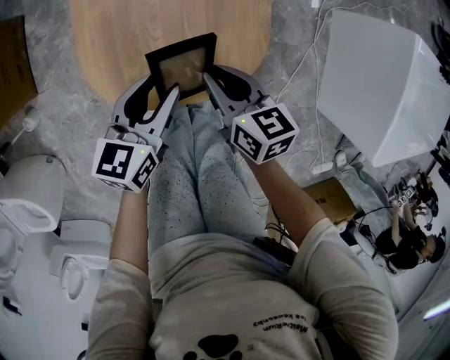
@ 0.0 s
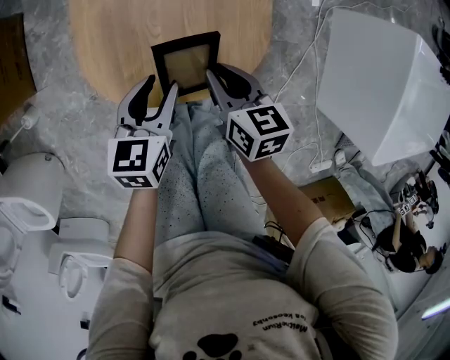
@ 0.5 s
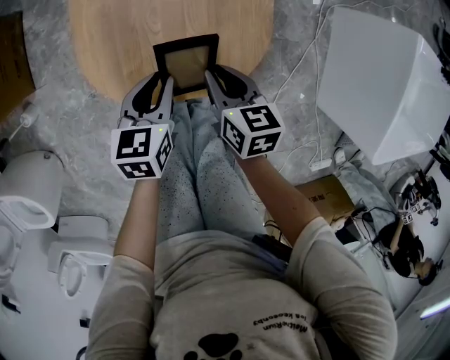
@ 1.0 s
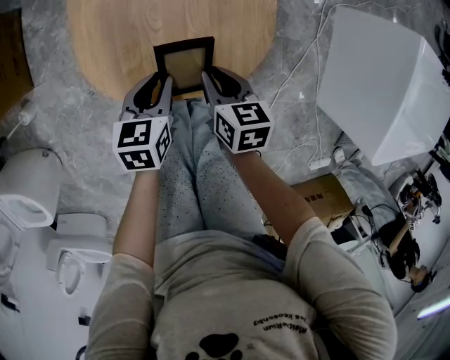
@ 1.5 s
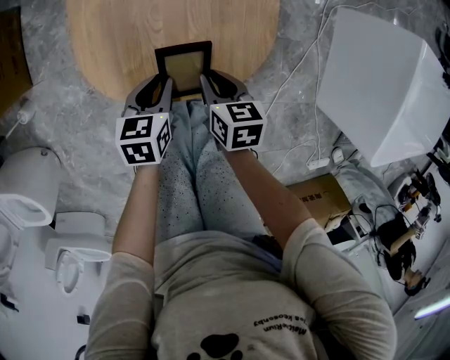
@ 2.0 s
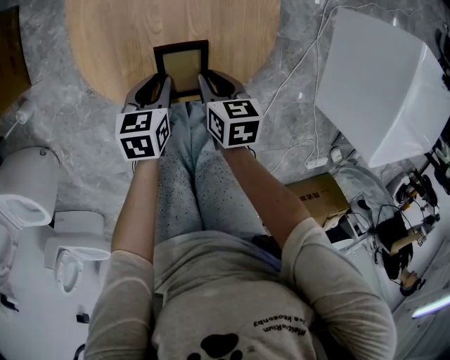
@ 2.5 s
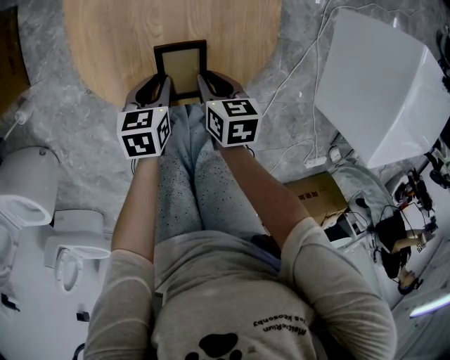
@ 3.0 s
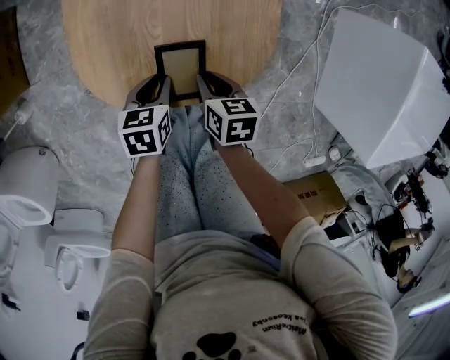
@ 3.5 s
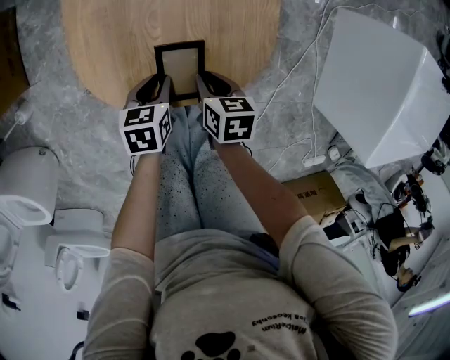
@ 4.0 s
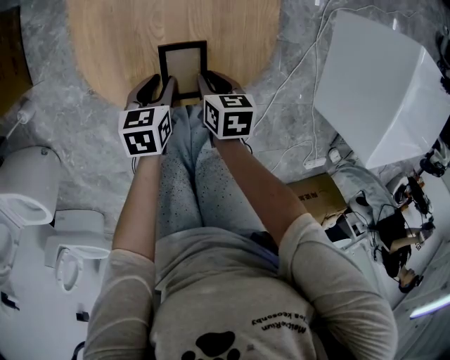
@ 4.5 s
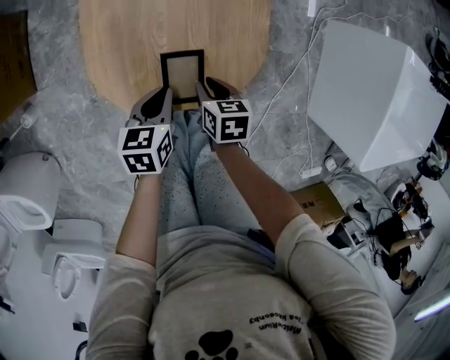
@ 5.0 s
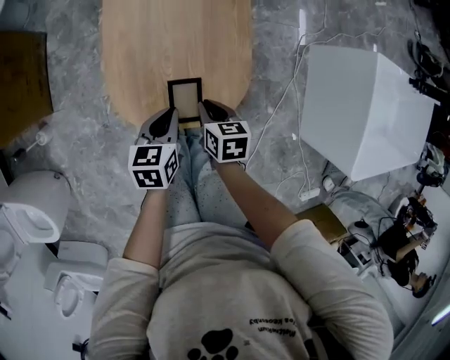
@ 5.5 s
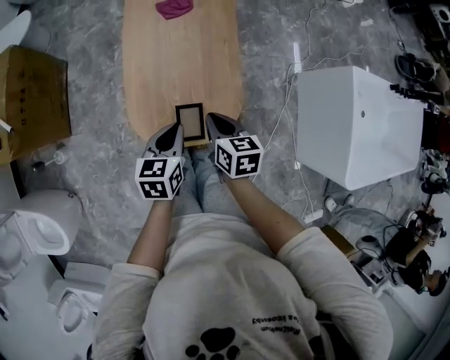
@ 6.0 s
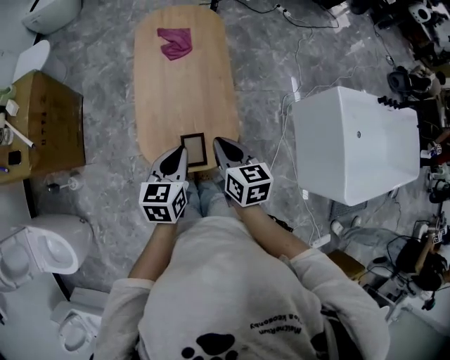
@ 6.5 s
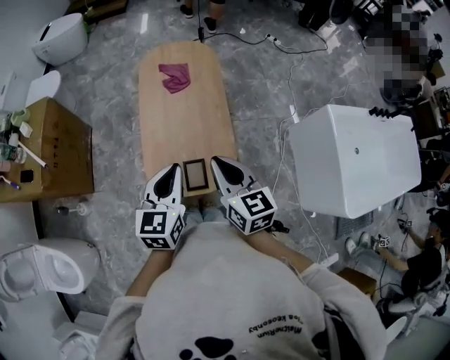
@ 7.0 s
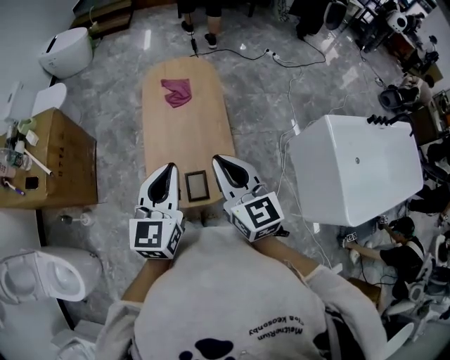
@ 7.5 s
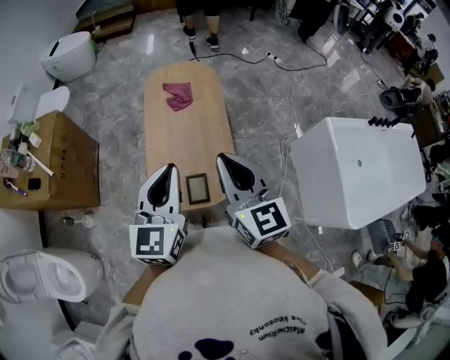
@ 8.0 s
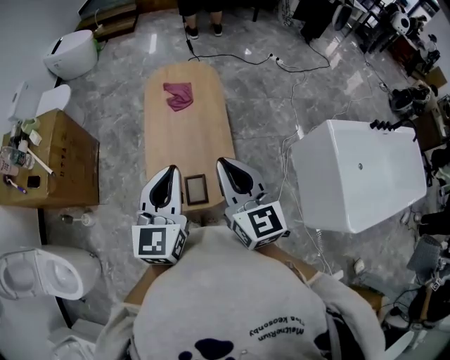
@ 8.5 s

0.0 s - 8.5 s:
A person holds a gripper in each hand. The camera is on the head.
0.0 s - 2.0 s: The grippers both shift downward by approximately 10 cm. The left gripper rotates approximately 20 degrees, and closes up.
2.0 s - 4.0 s: The grippers stay close to where they were, moving slightly.
4.0 s - 6.5 s: Both grippers move upward, about 35 cm. The left gripper tilts its fingers some 30 degrees upward; the right gripper swivels about 30 degrees.
6.5 s - 8.5 s: Both grippers travel together upward, about 20 cm. The right gripper changes its angle by about 30 degrees. The left gripper swivels approximately 30 degrees.

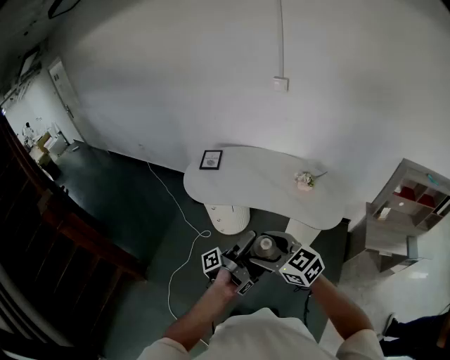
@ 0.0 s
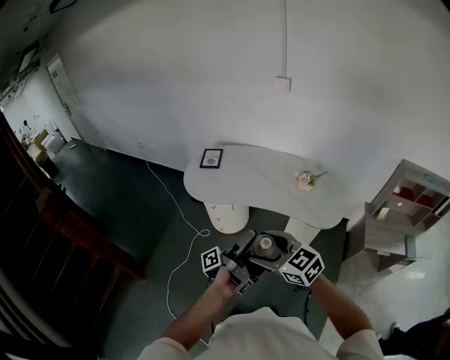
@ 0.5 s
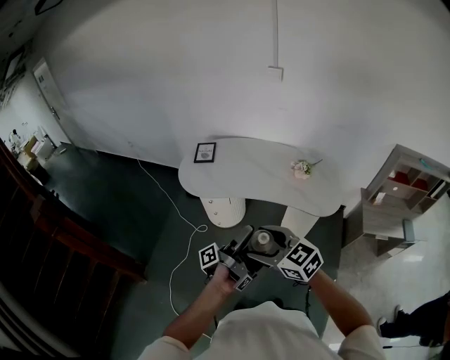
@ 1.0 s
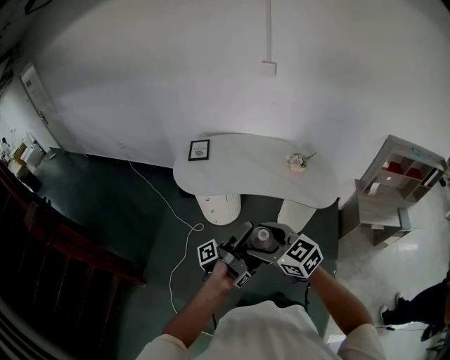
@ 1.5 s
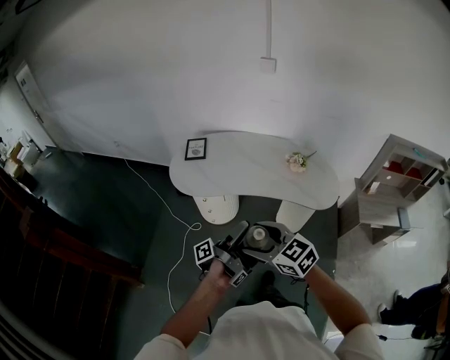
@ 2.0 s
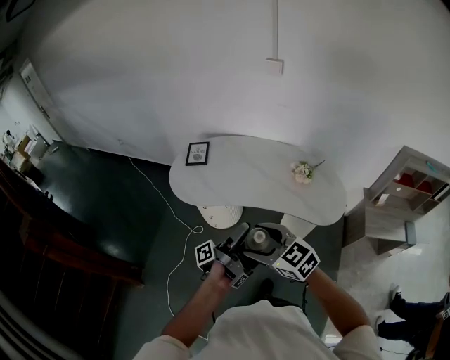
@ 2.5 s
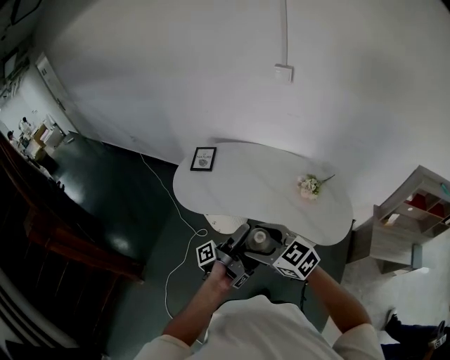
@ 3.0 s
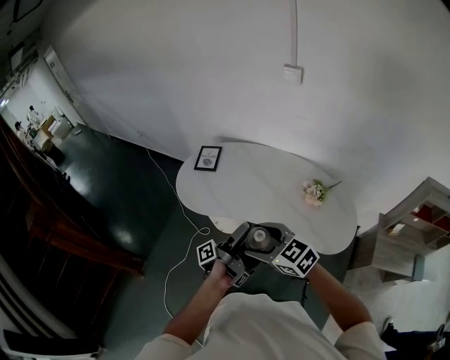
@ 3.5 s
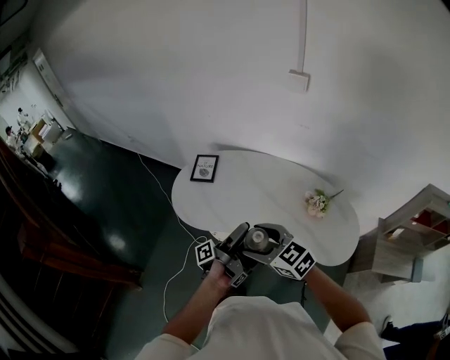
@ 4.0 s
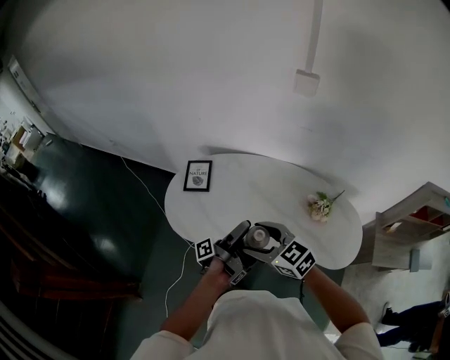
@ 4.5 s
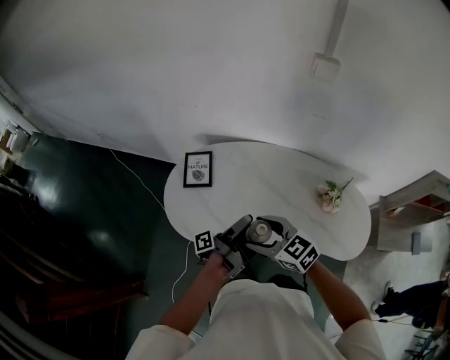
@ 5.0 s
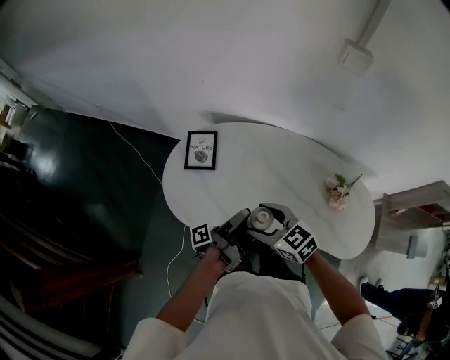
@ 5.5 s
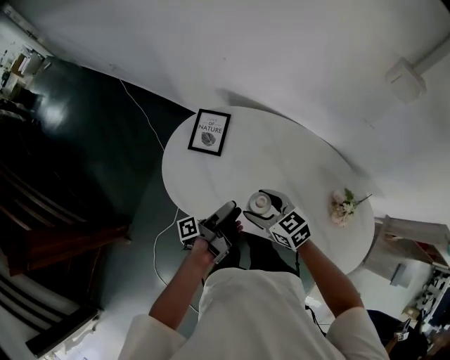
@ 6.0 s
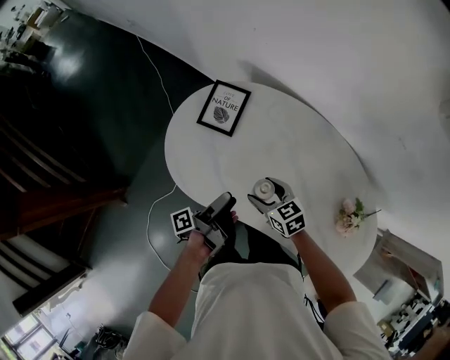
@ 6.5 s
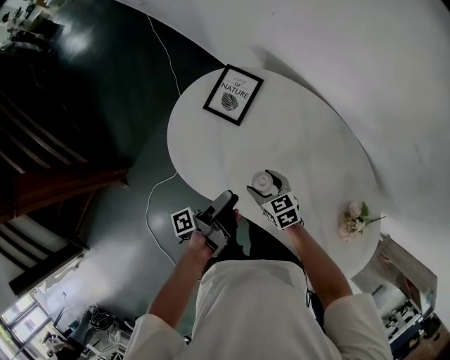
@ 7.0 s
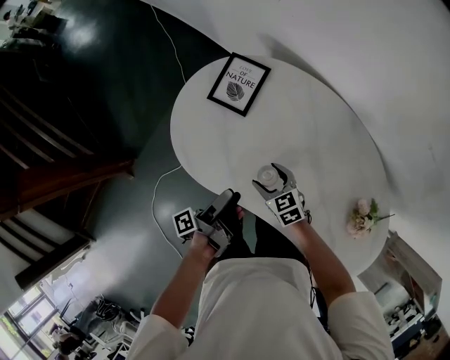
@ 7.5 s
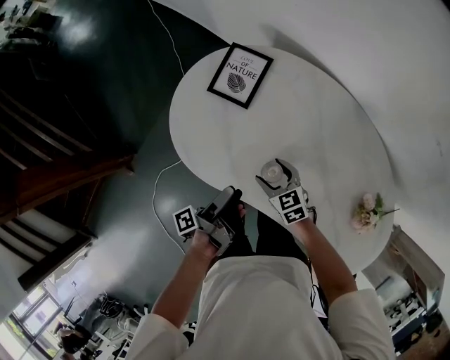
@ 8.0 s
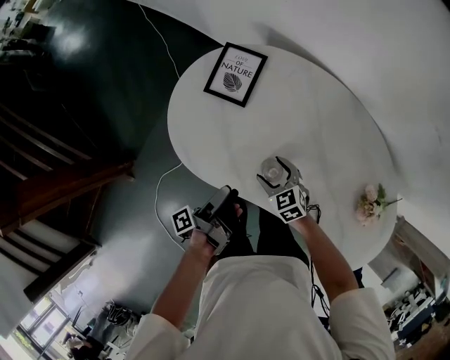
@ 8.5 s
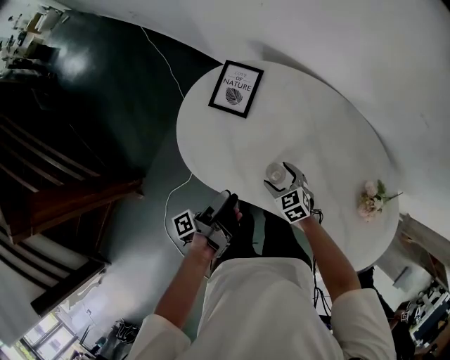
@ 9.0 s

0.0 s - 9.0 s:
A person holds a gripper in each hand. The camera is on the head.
0.0 s - 2.0 s: The right gripper ends up approximately 10 cm from where it was.
2.0 s - 4.5 s: The right gripper moves about 40 cm.
4.5 s - 7.0 s: The right gripper is displaced downward by roughly 35 cm, and swivels roughly 30 degrees.

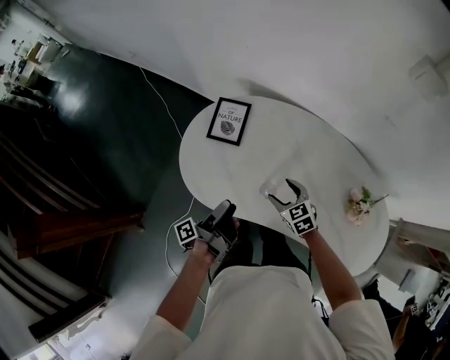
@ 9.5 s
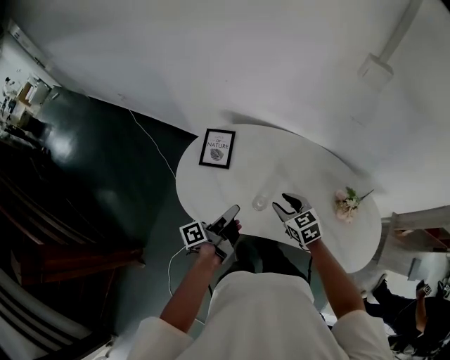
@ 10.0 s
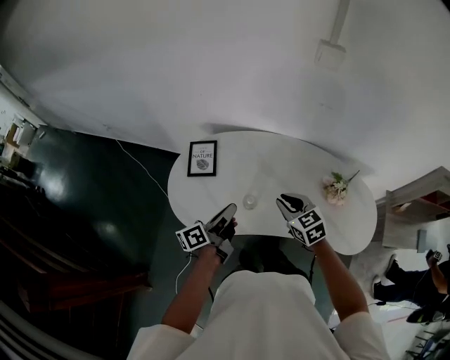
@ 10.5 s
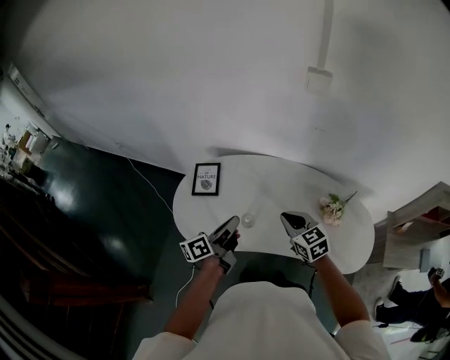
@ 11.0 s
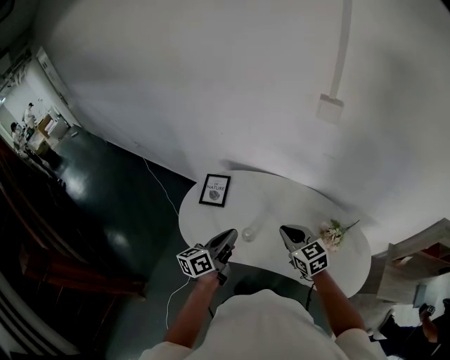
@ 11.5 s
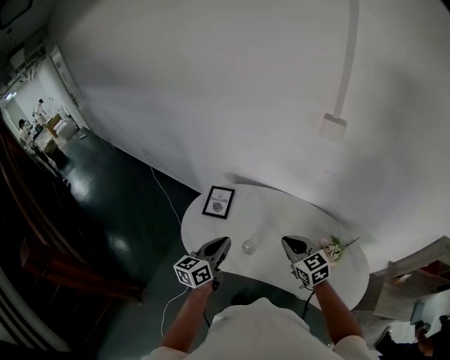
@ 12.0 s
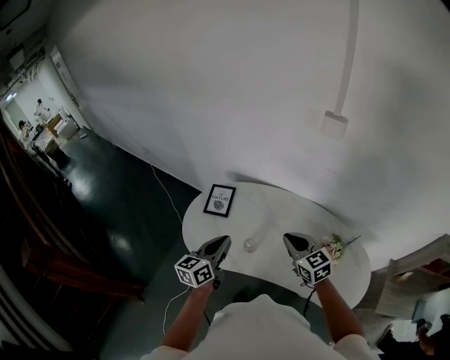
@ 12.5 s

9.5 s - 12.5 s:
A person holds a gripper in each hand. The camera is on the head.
9.5 s - 11.0 s: The right gripper travels upward by some 20 cm, changes its angle by approximately 20 degrees, and closes its fingers.
11.0 s - 12.5 s: The right gripper travels upward by roughly 5 cm.

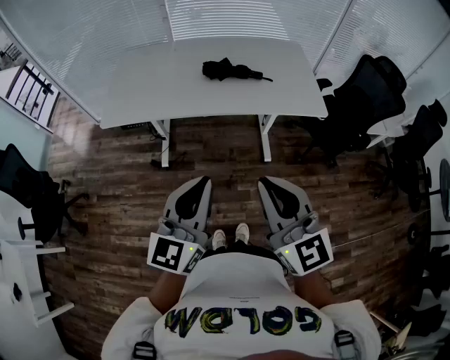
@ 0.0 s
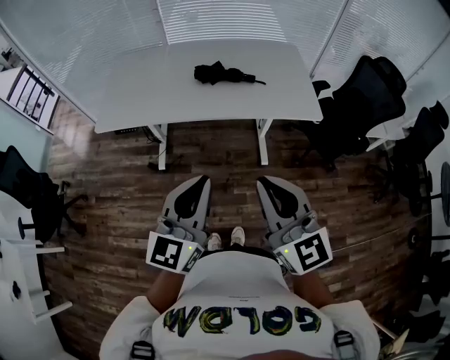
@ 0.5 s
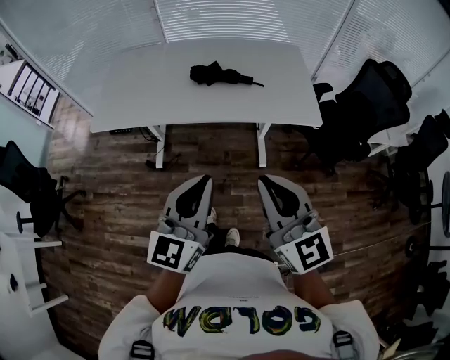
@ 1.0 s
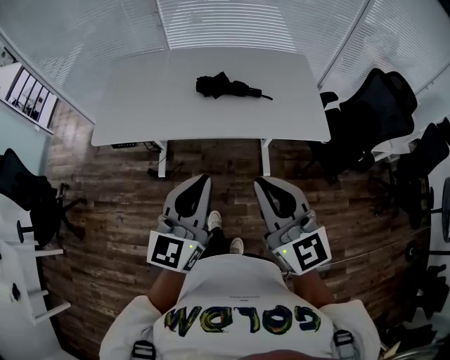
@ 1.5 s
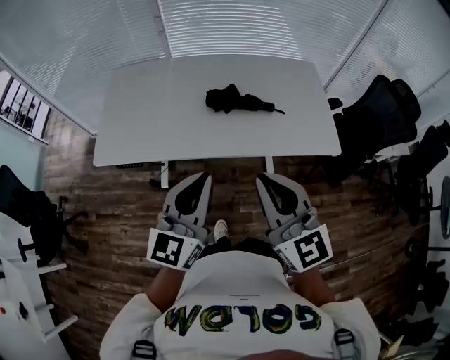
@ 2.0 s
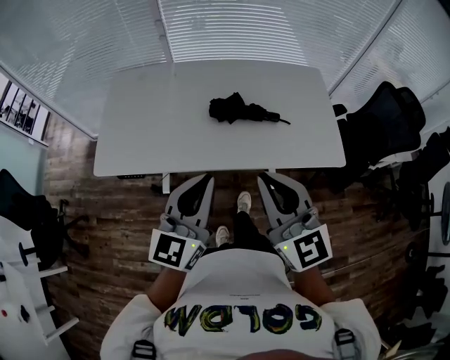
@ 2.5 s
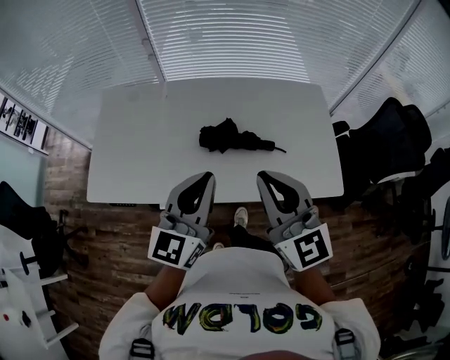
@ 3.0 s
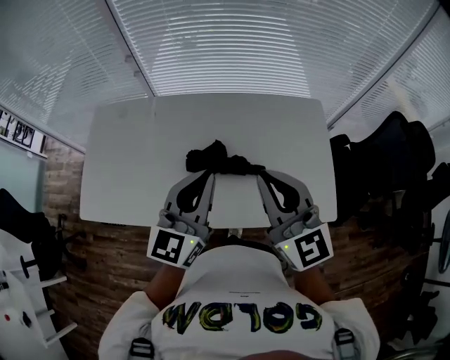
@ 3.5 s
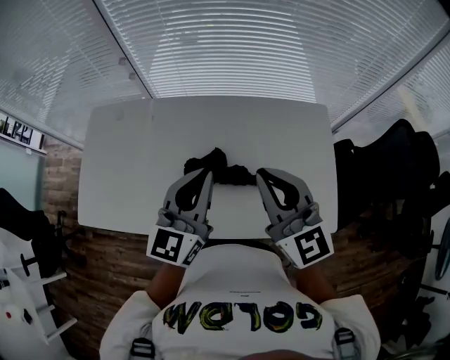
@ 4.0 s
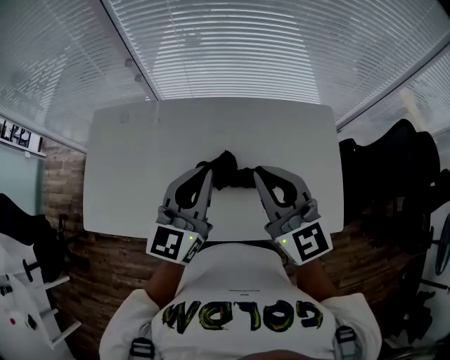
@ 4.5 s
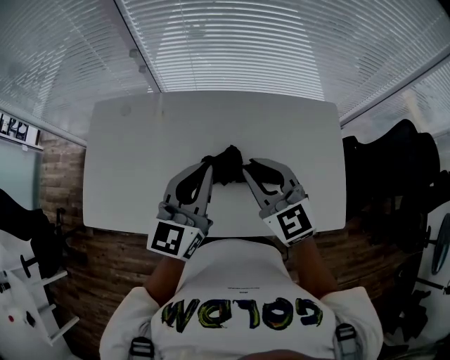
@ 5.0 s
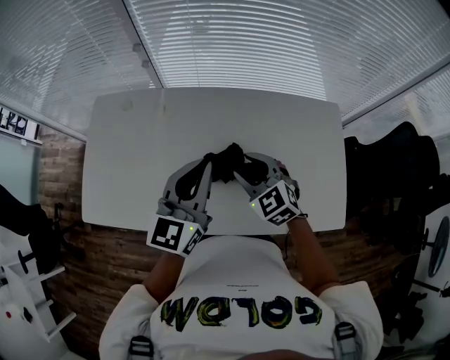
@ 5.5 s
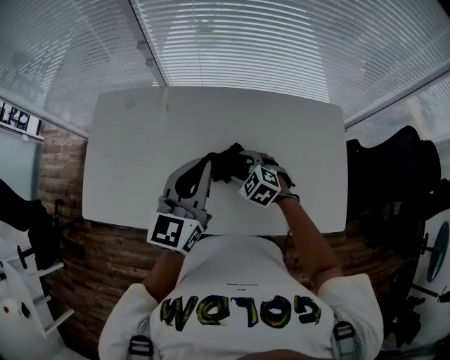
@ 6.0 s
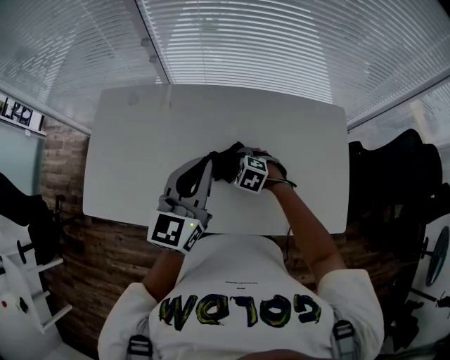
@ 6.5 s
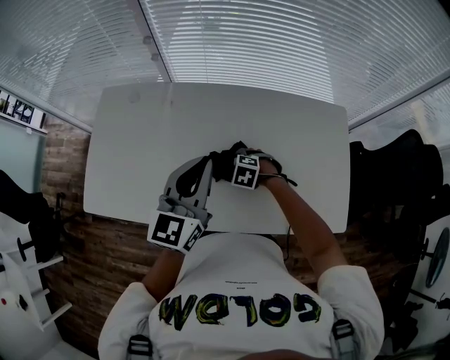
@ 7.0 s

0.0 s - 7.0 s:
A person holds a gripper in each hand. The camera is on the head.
0.0 s - 2.0 s: Both grippers travel together forward, some 25 cm.
2.0 s - 3.5 s: The two grippers go about 30 cm forward.
3.5 s - 5.0 s: The left gripper heads forward and to the left, covering some 10 cm. The right gripper travels forward, downward and to the left by some 15 cm, and changes its angle by about 20 degrees.
5.0 s - 7.0 s: The right gripper moves downward, roughly 30 cm, points its fingers approximately 60 degrees further downward, and opens its fingers.
